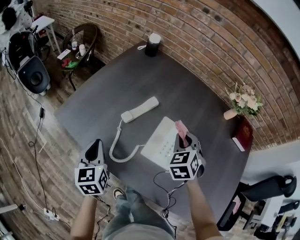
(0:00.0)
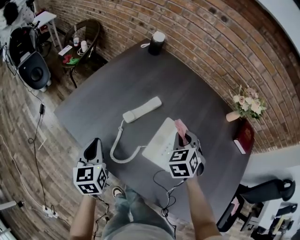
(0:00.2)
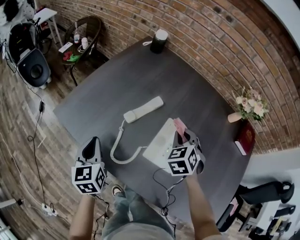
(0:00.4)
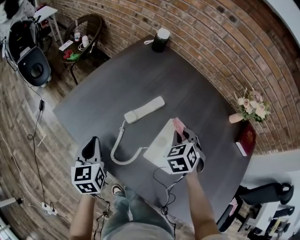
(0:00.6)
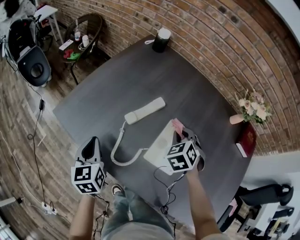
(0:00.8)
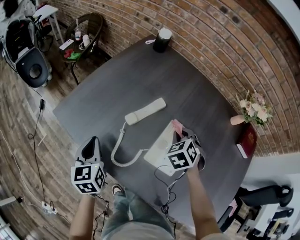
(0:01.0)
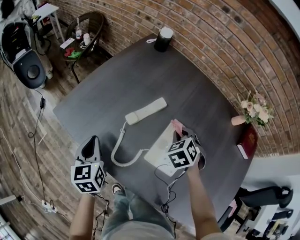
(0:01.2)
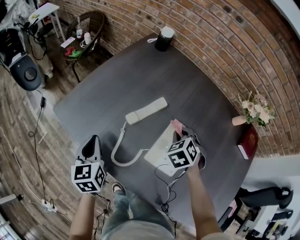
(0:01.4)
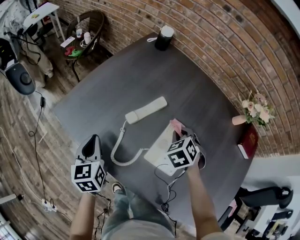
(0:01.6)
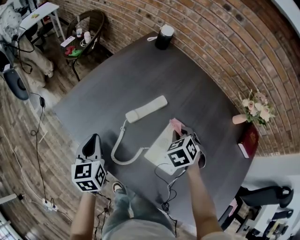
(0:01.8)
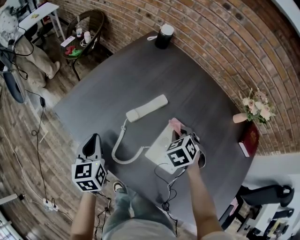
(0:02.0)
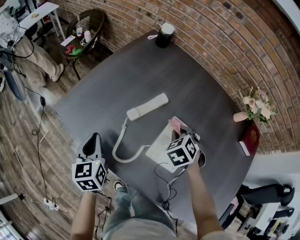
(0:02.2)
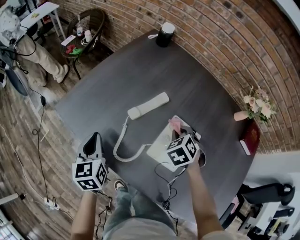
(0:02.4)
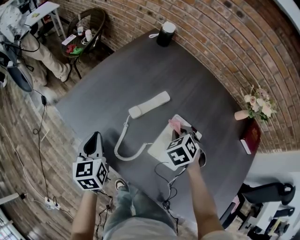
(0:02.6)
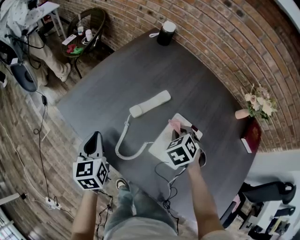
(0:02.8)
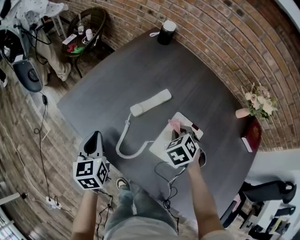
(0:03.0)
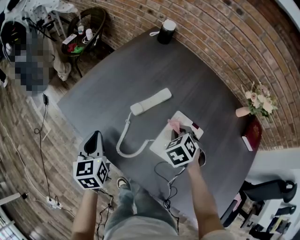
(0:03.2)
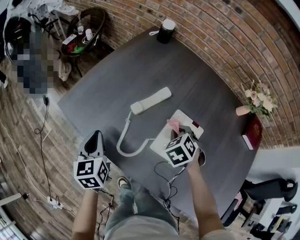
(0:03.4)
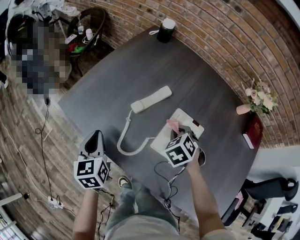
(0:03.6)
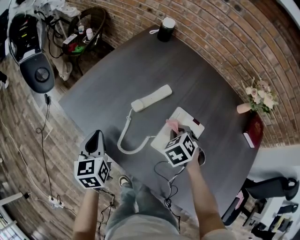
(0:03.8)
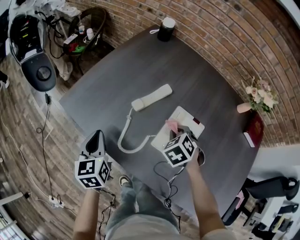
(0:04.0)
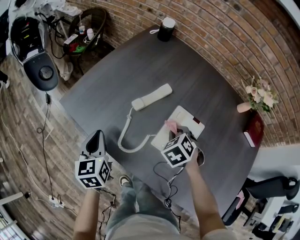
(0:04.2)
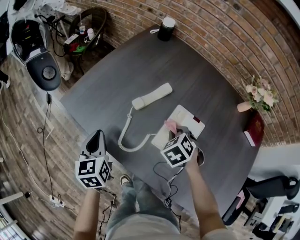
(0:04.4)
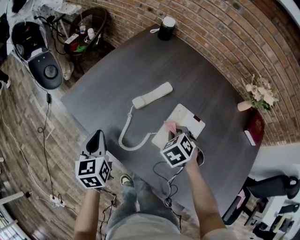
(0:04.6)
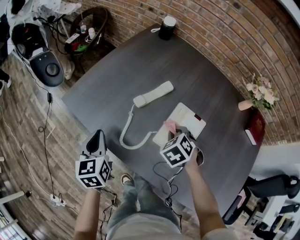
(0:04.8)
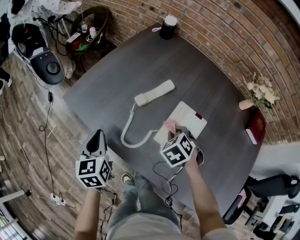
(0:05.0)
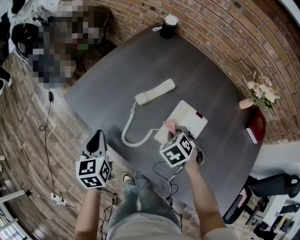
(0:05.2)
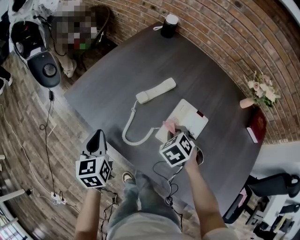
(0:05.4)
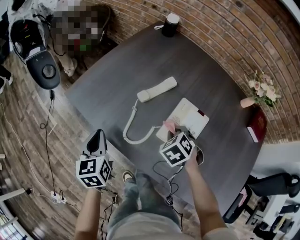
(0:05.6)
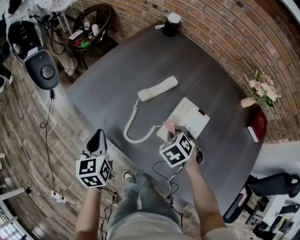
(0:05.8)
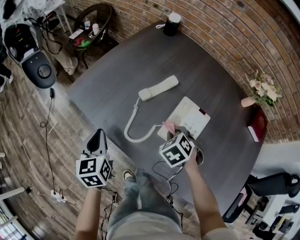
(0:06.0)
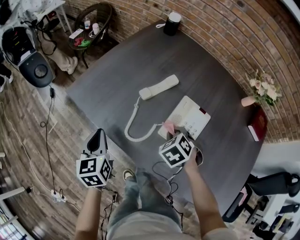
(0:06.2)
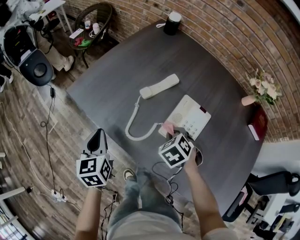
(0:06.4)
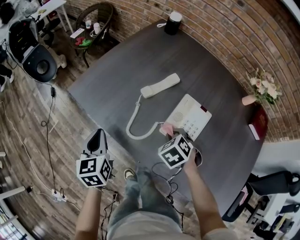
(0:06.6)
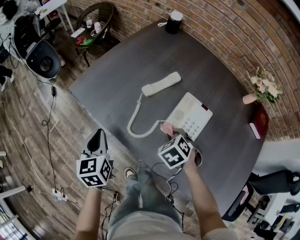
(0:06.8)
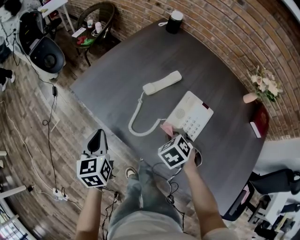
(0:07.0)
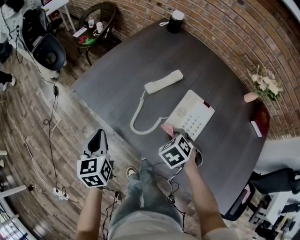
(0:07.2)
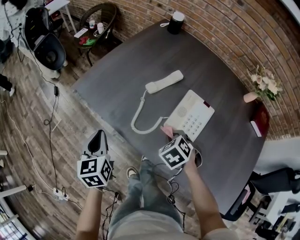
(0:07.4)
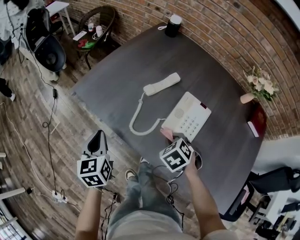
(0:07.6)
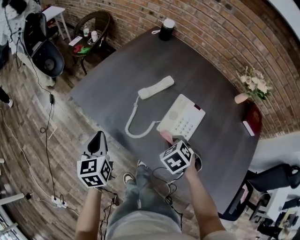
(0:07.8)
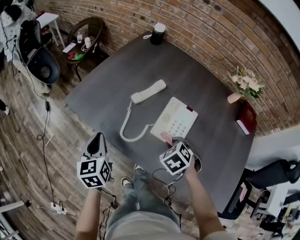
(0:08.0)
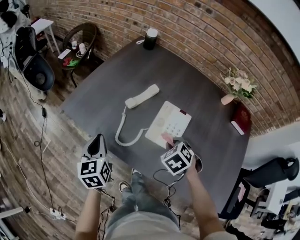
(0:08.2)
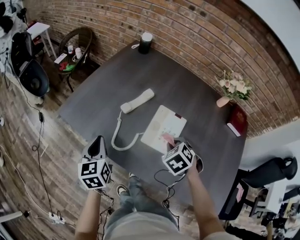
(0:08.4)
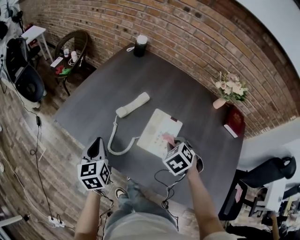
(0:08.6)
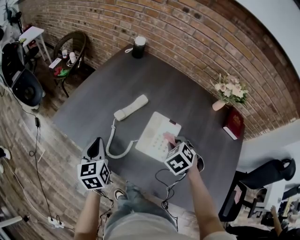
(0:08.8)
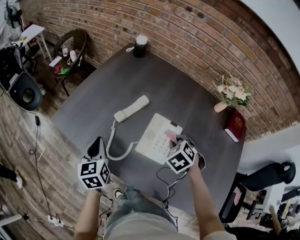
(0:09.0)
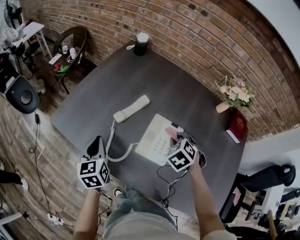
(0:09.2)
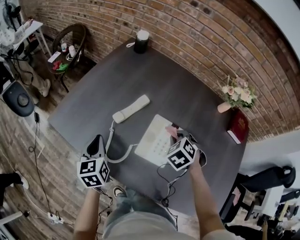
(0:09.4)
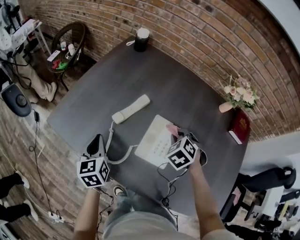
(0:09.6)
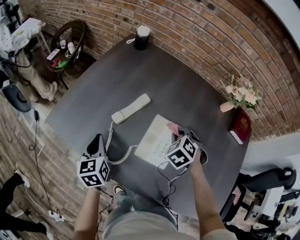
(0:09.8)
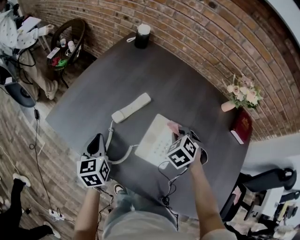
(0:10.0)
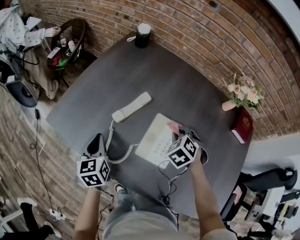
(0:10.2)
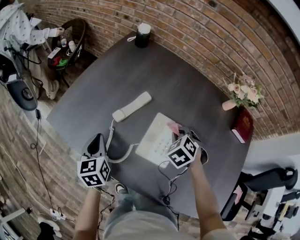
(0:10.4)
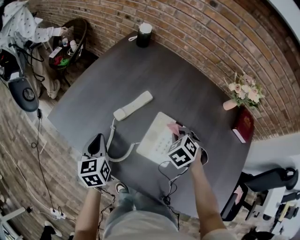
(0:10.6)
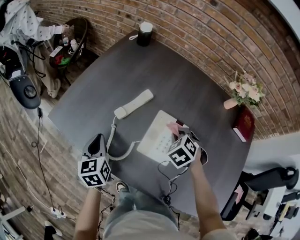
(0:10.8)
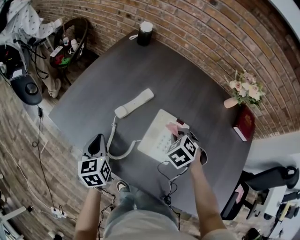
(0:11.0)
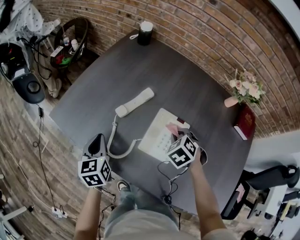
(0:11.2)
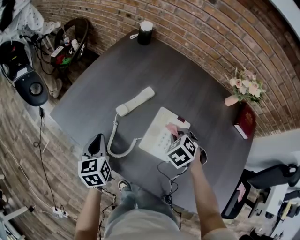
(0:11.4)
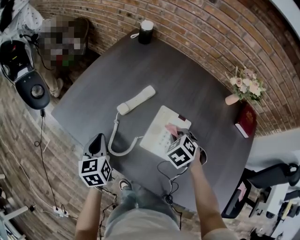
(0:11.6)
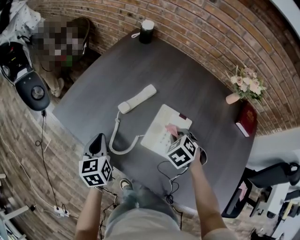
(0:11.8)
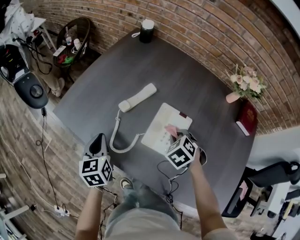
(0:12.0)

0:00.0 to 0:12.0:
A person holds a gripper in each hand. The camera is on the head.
0:00.0 to 0:01.6: The left gripper ends up approximately 5 cm from where it was, while the right gripper moves downward, some 10 cm.
0:01.6 to 0:03.0: The grippers move only a little.
0:03.0 to 0:04.4: There are only small adjustments of the grippers.
0:04.4 to 0:06.0: The right gripper shifts by about 5 cm.
0:06.0 to 0:07.6: The right gripper shifts some 5 cm backward.
0:07.6 to 0:09.0: The left gripper is displaced forward and to the right by some 15 cm. Meanwhile the right gripper shifts roughly 15 cm to the right, forward and upward.
0:09.0 to 0:10.4: The left gripper shifts by about 5 cm, while the right gripper heads forward, covering about 5 cm.
0:10.4 to 0:12.0: The right gripper heads backward, covering roughly 5 cm.

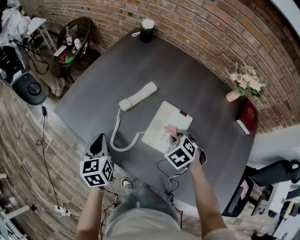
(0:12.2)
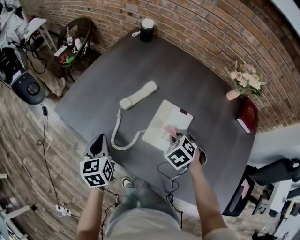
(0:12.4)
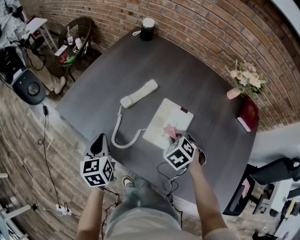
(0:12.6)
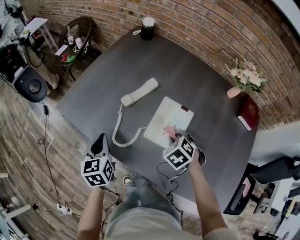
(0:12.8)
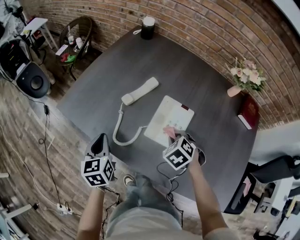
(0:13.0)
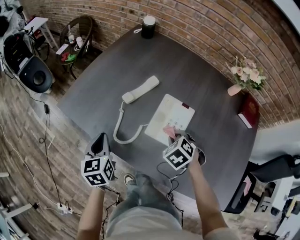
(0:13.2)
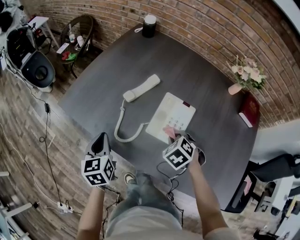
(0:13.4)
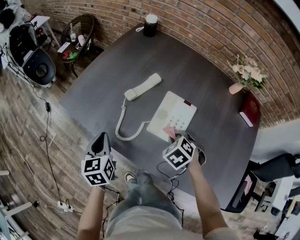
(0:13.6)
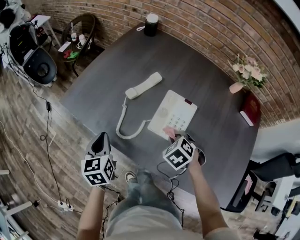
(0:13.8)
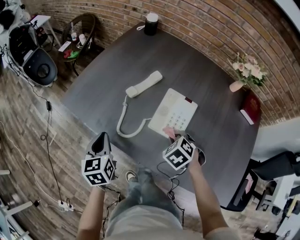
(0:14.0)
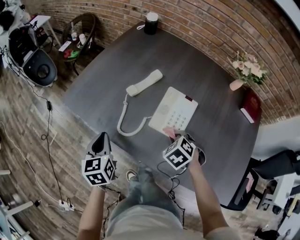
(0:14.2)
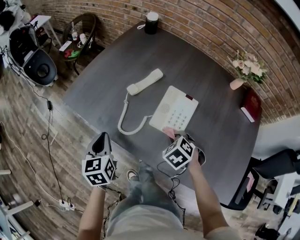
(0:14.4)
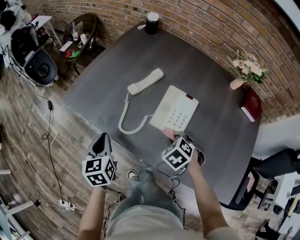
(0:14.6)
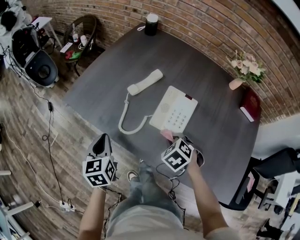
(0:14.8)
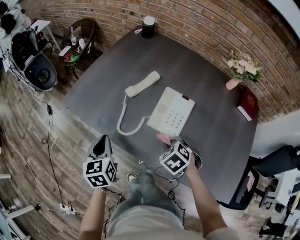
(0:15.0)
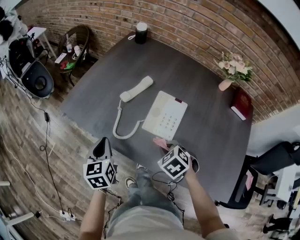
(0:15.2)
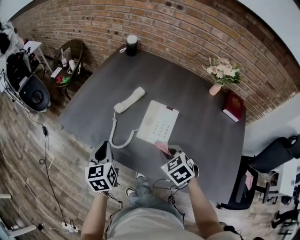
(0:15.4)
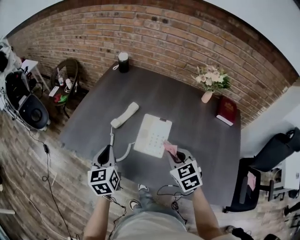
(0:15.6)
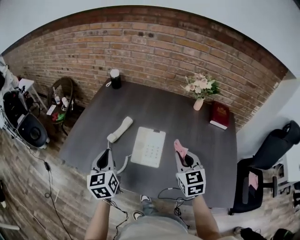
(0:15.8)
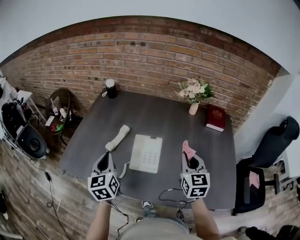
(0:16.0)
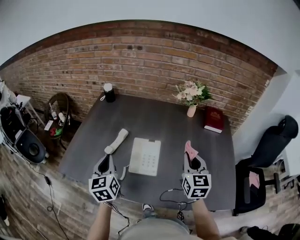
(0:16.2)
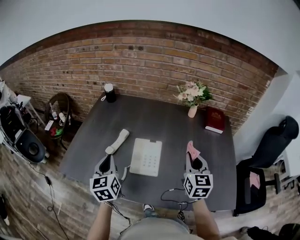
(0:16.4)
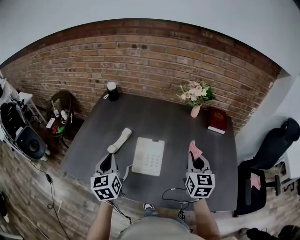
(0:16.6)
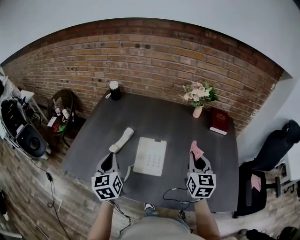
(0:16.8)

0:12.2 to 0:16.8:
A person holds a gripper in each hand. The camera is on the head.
0:12.2 to 0:13.8: Both grippers travel together backward, roughly 5 cm.
0:13.8 to 0:15.2: The right gripper travels backward by about 5 cm.
0:15.2 to 0:16.8: The left gripper shifts by about 20 cm. The right gripper heads upward, covering some 20 cm, and tilts its fingers roughly 50 degrees upward.

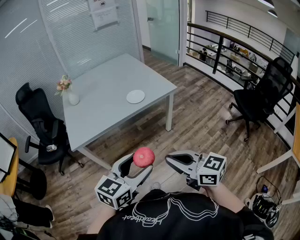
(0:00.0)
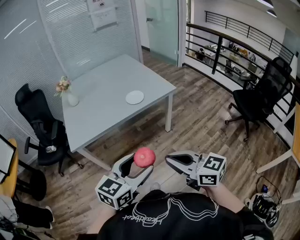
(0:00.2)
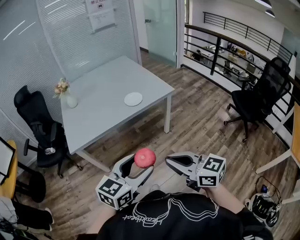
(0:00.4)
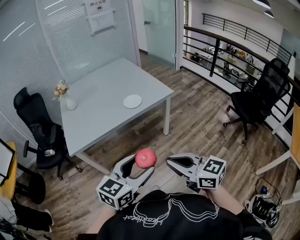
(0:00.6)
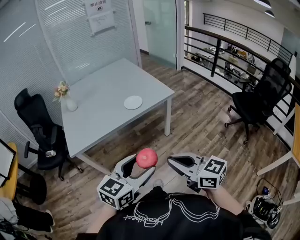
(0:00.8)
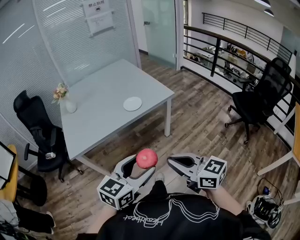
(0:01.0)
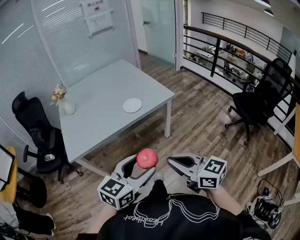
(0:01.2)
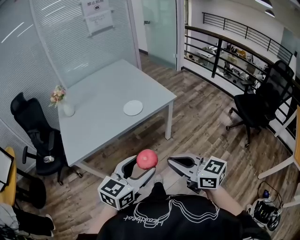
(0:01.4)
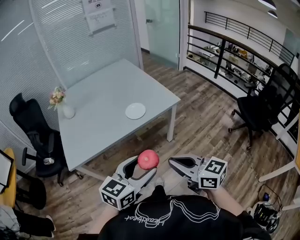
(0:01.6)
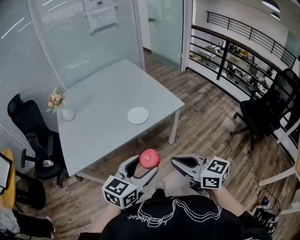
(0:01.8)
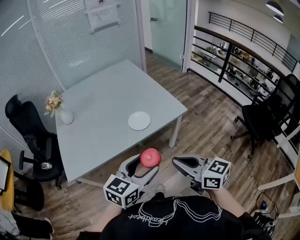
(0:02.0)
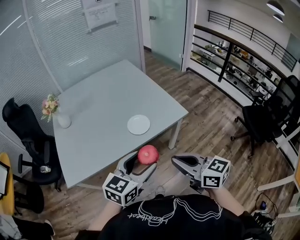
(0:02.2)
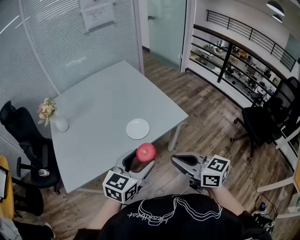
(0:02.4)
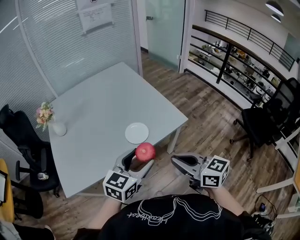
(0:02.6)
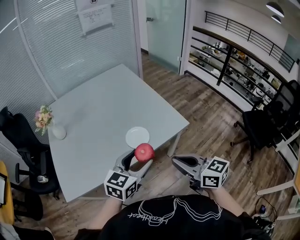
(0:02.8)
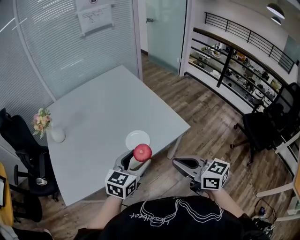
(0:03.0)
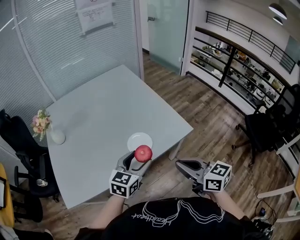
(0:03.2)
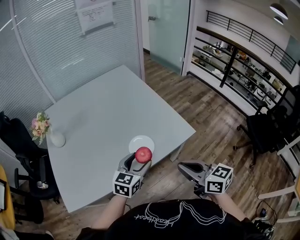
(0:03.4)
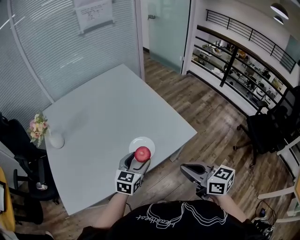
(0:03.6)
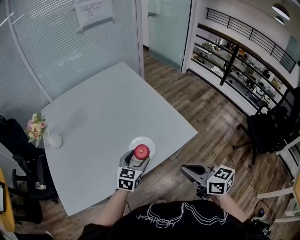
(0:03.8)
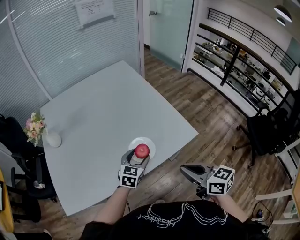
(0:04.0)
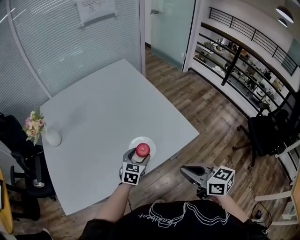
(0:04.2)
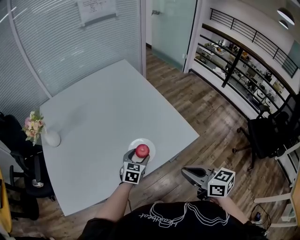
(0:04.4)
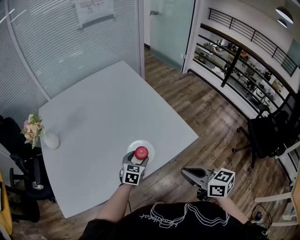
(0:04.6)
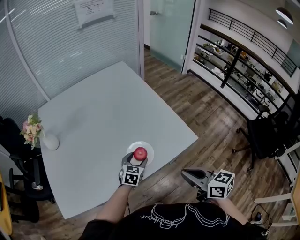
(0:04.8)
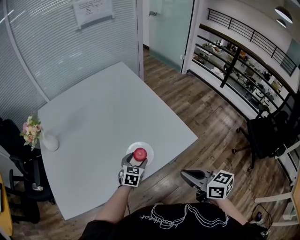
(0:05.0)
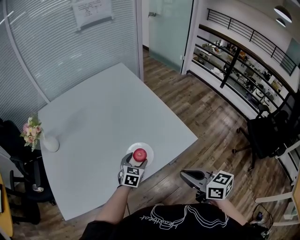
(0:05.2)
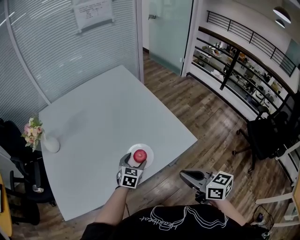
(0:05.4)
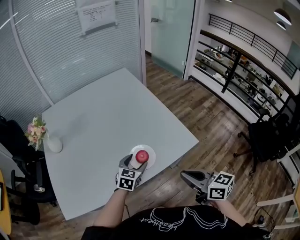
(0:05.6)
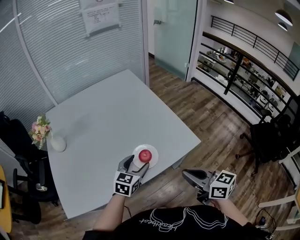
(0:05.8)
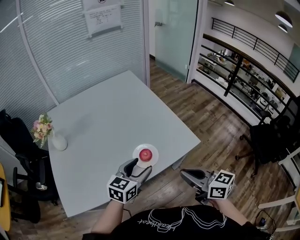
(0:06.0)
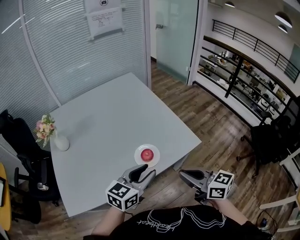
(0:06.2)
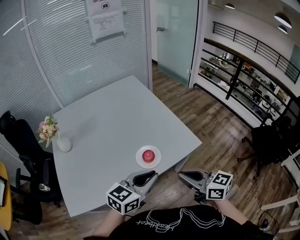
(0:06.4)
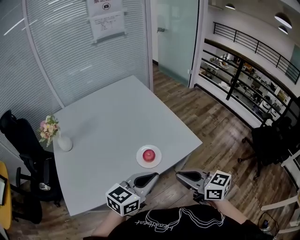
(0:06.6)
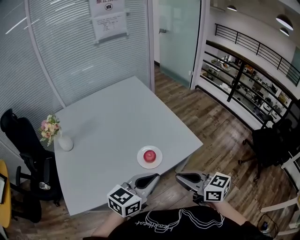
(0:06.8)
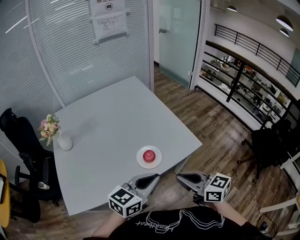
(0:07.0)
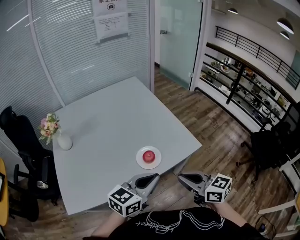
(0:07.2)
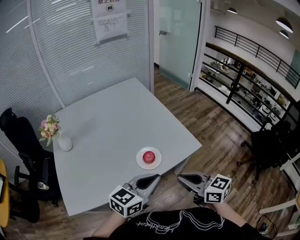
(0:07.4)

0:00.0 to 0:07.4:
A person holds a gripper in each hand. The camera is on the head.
0:00.0 to 0:01.4: The two grippers go about 10 cm forward.
0:01.4 to 0:03.0: The two grippers go about 35 cm forward.
0:03.0 to 0:04.4: The right gripper heads forward and downward, covering some 10 cm. The left gripper heads downward and forward, covering roughly 25 cm.
0:04.4 to 0:06.0: The left gripper goes roughly 15 cm upward and backward.
0:06.0 to 0:07.4: The left gripper travels backward and upward by roughly 10 cm, and closes.
